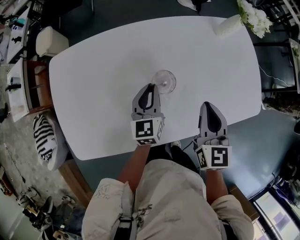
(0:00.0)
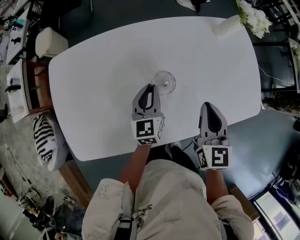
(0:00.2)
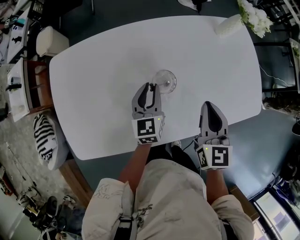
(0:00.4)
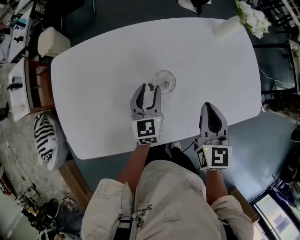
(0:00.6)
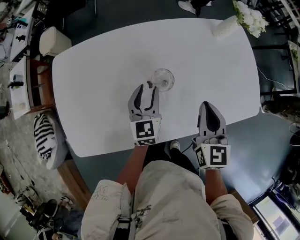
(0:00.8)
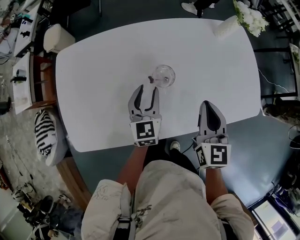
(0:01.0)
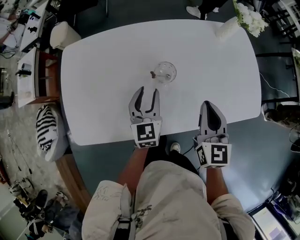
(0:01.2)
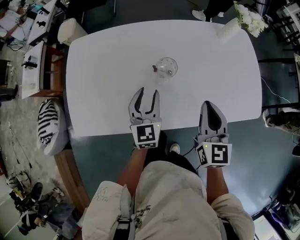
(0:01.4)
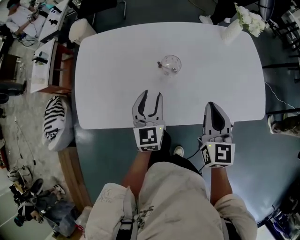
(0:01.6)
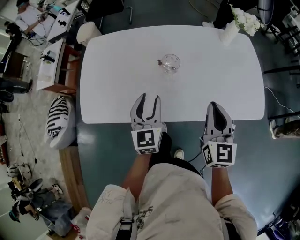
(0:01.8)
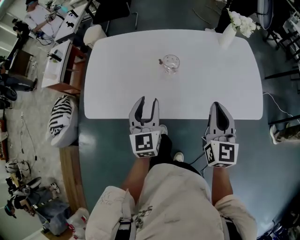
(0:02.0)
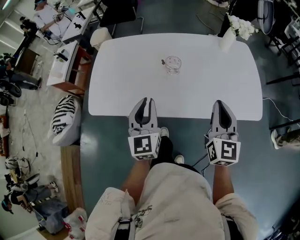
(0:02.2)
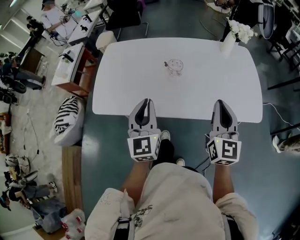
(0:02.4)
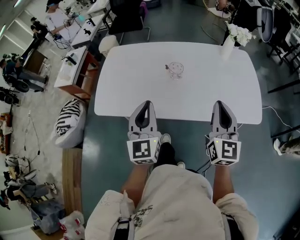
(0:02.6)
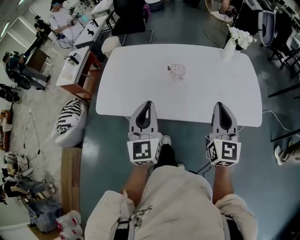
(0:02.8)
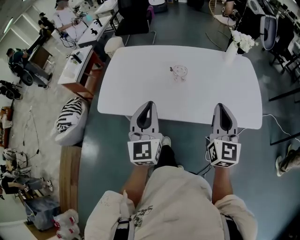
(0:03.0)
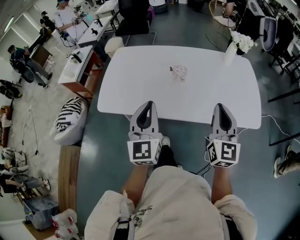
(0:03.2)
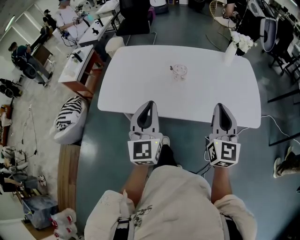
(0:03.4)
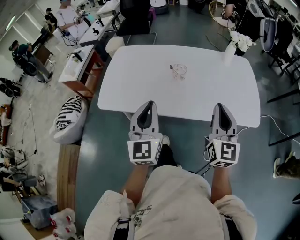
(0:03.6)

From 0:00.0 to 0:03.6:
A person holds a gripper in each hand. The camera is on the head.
From 0:00.0 to 0:01.8: The right gripper is displaced backward, to the right and upward by approximately 15 cm, while the left gripper is displaced backward and upward by about 25 cm, turns by some 20 degrees, and opens its fingers.
From 0:01.8 to 0:03.6: The right gripper heads backward and upward, covering approximately 15 cm. Meanwhile the left gripper heads backward and upward, covering roughly 25 cm, and closes up.

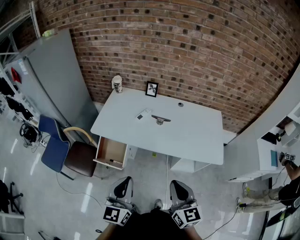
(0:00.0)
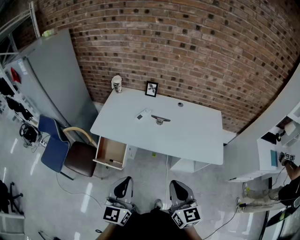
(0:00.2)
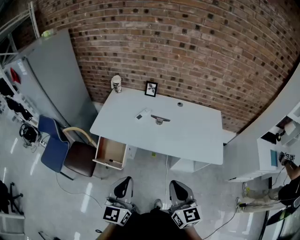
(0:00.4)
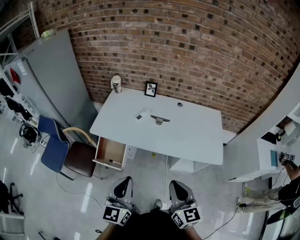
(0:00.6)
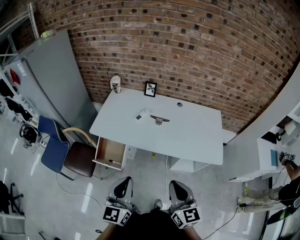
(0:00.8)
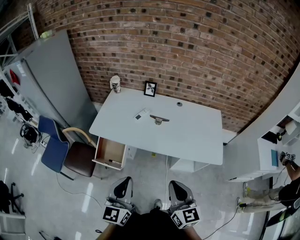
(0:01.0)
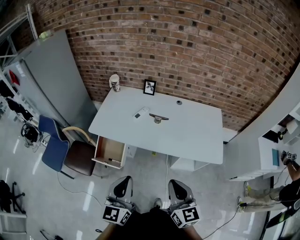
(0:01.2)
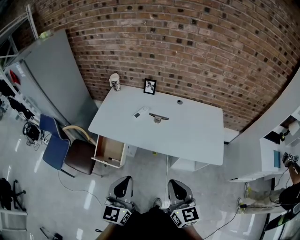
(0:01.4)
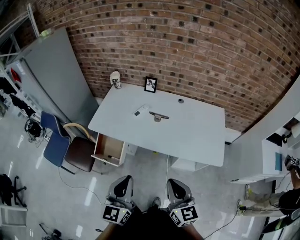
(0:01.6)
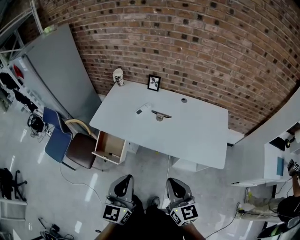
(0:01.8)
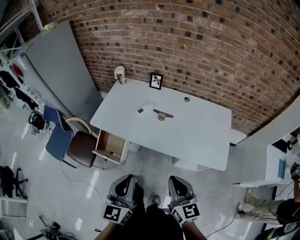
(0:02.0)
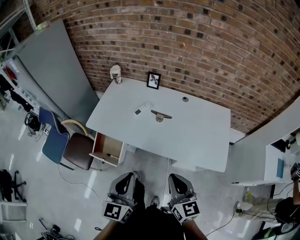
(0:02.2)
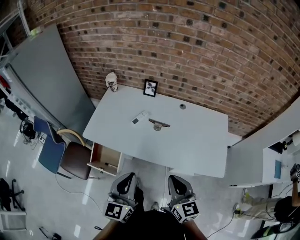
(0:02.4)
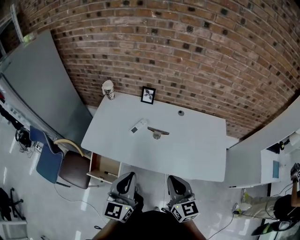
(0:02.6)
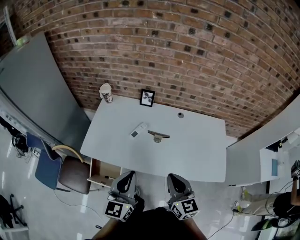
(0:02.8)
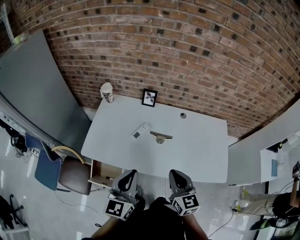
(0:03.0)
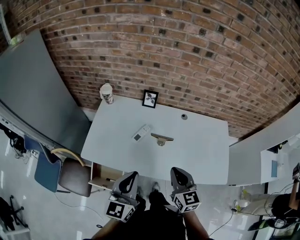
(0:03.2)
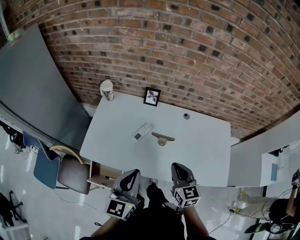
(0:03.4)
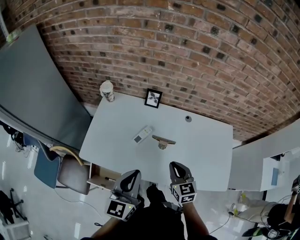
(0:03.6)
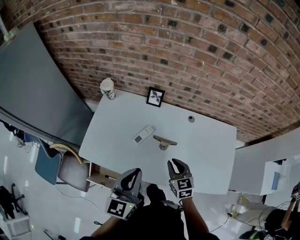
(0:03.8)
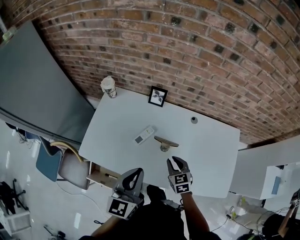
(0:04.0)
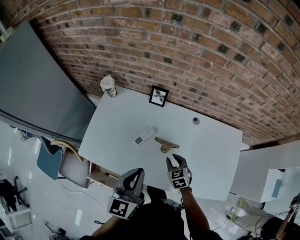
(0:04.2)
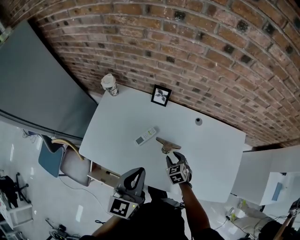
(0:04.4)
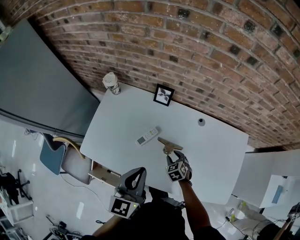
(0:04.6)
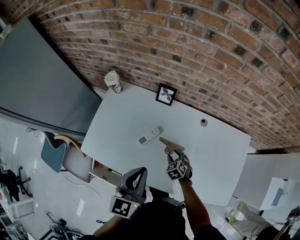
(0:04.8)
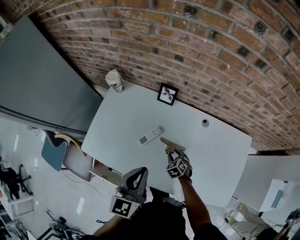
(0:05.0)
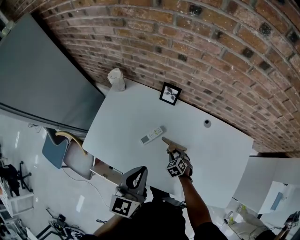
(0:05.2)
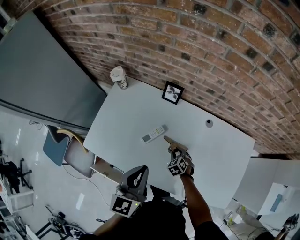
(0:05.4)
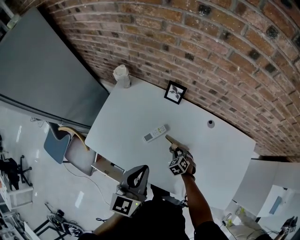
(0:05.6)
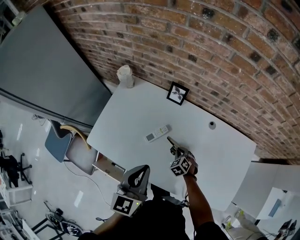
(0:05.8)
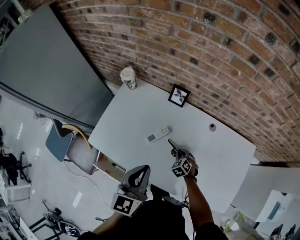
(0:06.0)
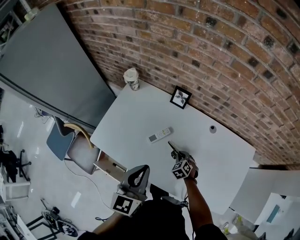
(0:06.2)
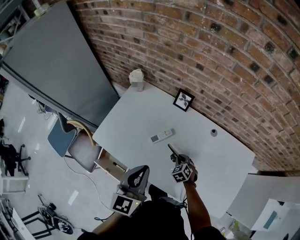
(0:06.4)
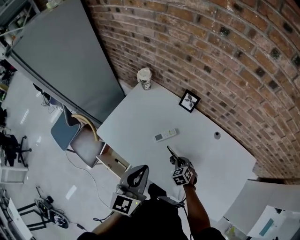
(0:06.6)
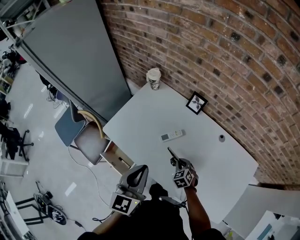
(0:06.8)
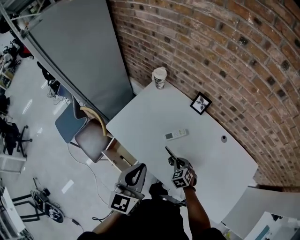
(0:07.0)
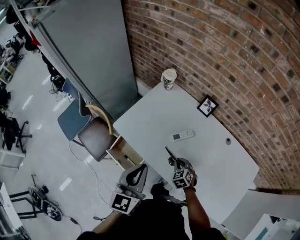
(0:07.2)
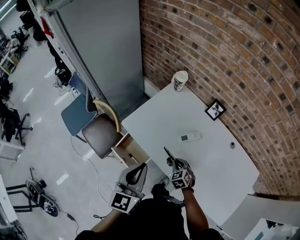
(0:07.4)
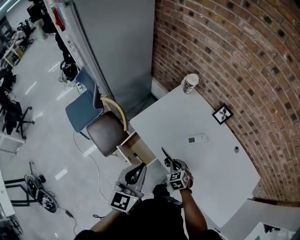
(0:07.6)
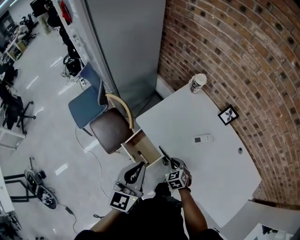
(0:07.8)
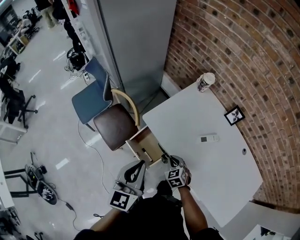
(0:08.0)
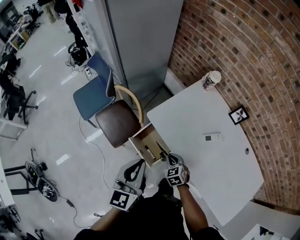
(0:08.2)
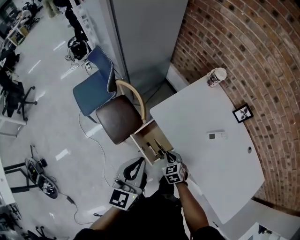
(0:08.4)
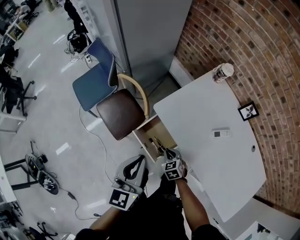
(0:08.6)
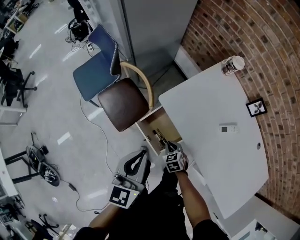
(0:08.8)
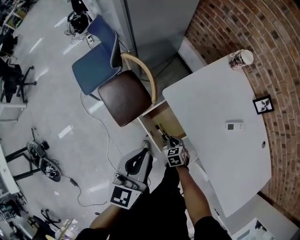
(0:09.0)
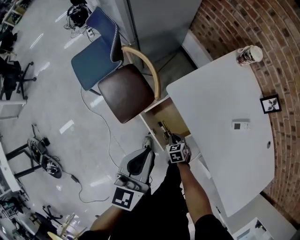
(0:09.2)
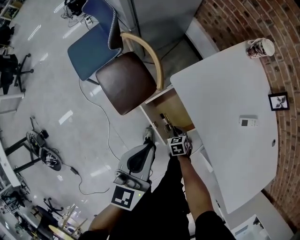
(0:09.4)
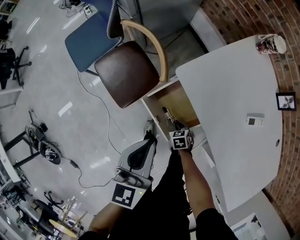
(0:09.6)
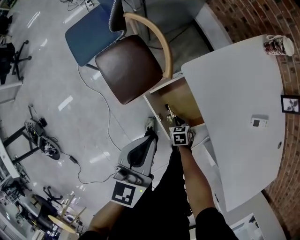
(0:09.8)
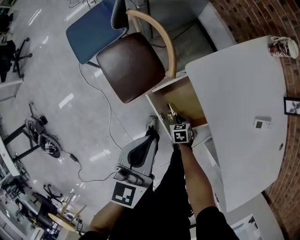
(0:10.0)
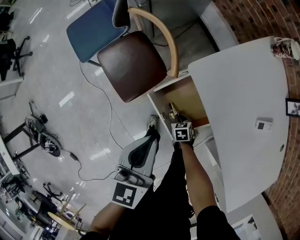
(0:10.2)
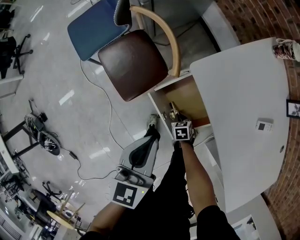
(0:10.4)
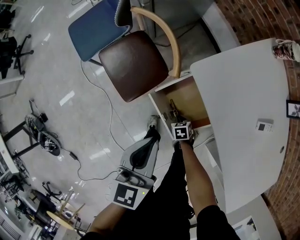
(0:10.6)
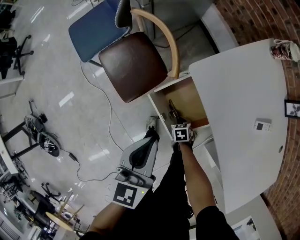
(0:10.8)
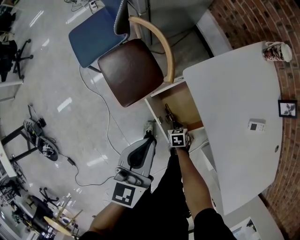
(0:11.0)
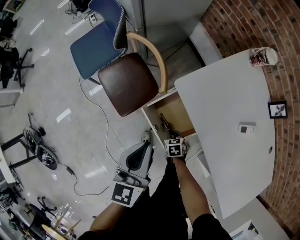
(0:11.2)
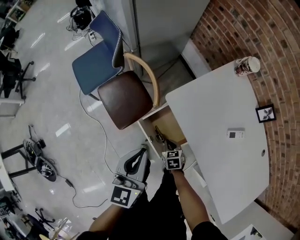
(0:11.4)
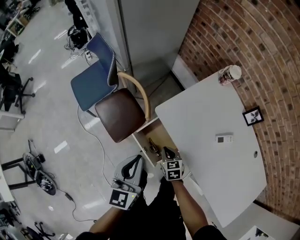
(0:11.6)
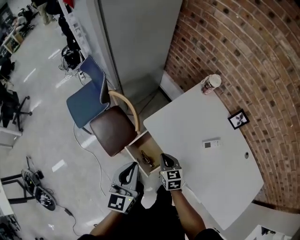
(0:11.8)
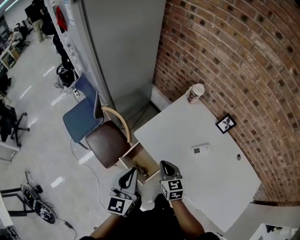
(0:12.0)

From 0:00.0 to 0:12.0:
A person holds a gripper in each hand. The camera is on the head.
From 0:00.0 to 0:01.6: Both grippers move to the right, approximately 5 cm.
From 0:01.6 to 0:03.0: The grippers both shift forward by roughly 25 cm.
From 0:03.0 to 0:04.4: The right gripper travels downward and forward by some 35 cm, points its fingers approximately 40 degrees further downward, and opens up. Meanwhile the left gripper heads forward, covering some 15 cm.
From 0:04.4 to 0:06.0: The right gripper travels downward by about 5 cm, and closes its fingers.
From 0:06.0 to 0:07.6: The left gripper goes some 30 cm to the left and backward, and swivels roughly 20 degrees, while the right gripper heads to the left, covering about 25 cm.
From 0:07.6 to 0:09.0: Both grippers travel together to the left and downward, roughly 25 cm.
From 0:09.0 to 0:10.4: Both grippers travel together downward, some 15 cm.
From 0:10.4 to 0:12.0: The right gripper heads upward, covering some 50 cm, and angles its fingers upward, by some 40 degrees; the left gripper heads upward, covering approximately 20 cm, and rotates some 20 degrees.

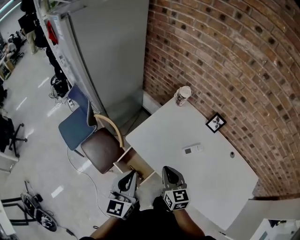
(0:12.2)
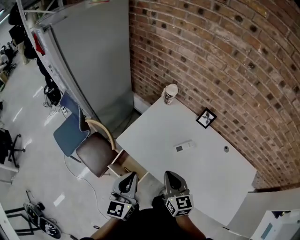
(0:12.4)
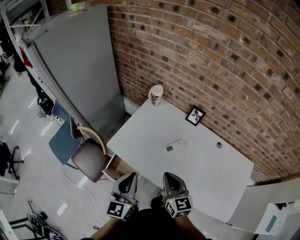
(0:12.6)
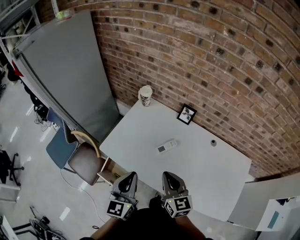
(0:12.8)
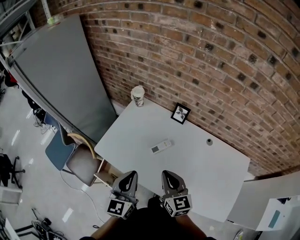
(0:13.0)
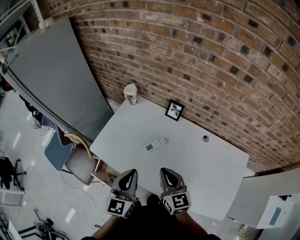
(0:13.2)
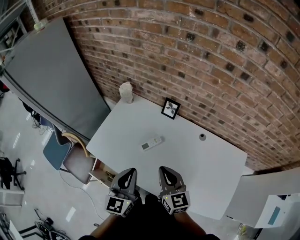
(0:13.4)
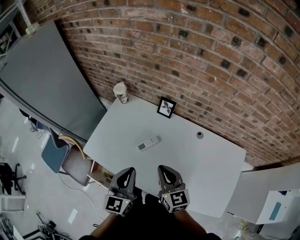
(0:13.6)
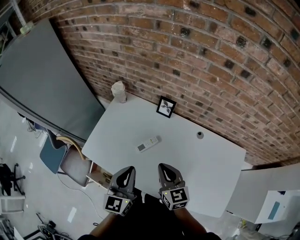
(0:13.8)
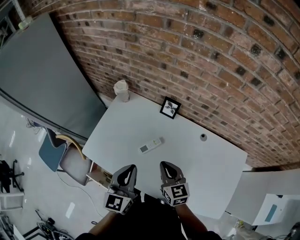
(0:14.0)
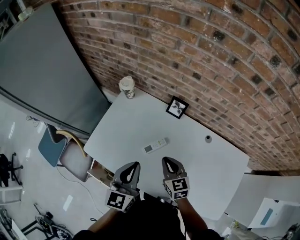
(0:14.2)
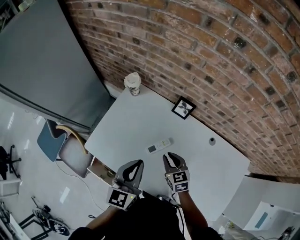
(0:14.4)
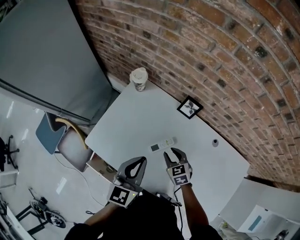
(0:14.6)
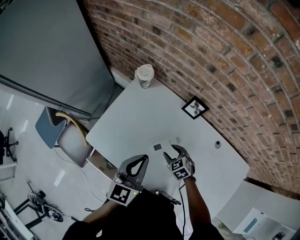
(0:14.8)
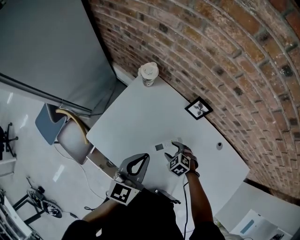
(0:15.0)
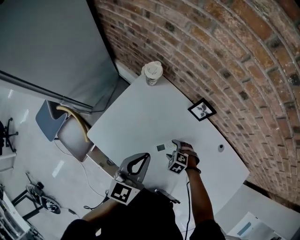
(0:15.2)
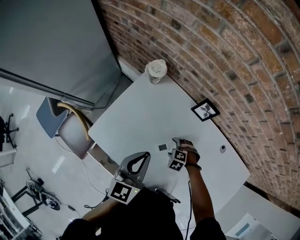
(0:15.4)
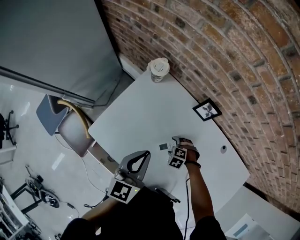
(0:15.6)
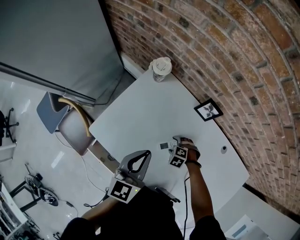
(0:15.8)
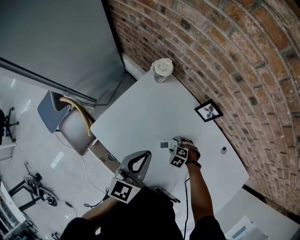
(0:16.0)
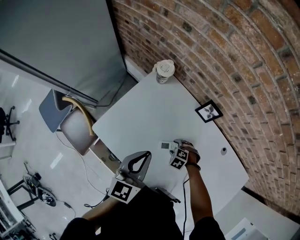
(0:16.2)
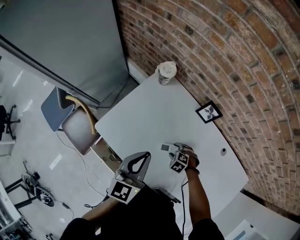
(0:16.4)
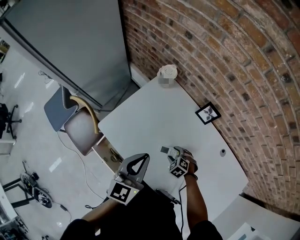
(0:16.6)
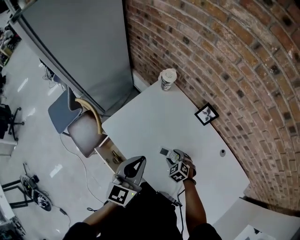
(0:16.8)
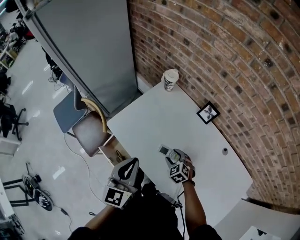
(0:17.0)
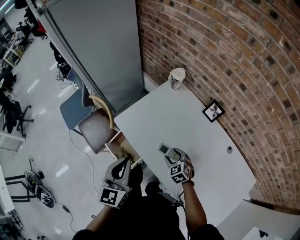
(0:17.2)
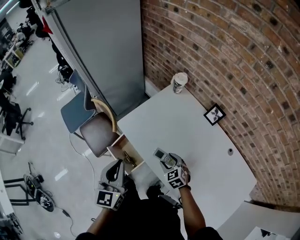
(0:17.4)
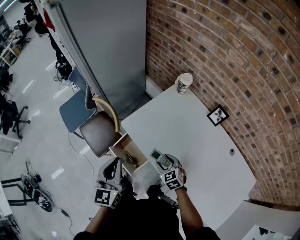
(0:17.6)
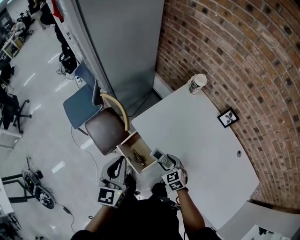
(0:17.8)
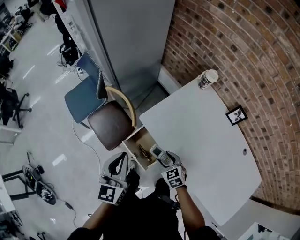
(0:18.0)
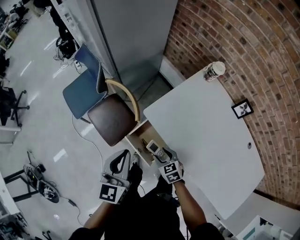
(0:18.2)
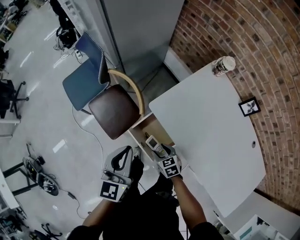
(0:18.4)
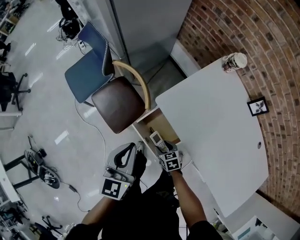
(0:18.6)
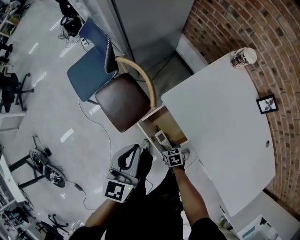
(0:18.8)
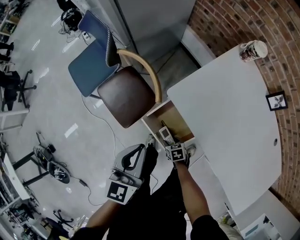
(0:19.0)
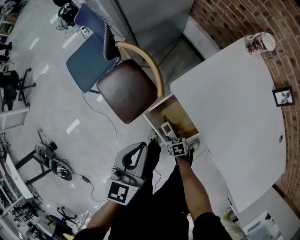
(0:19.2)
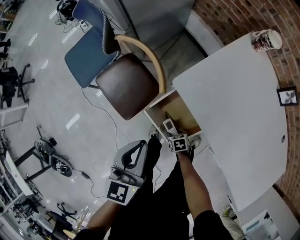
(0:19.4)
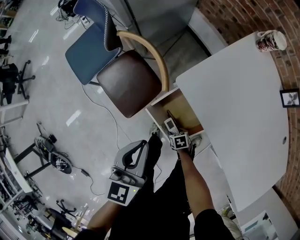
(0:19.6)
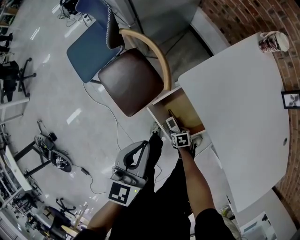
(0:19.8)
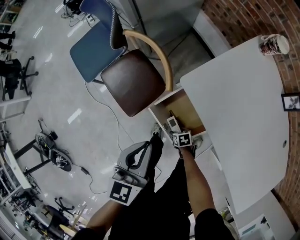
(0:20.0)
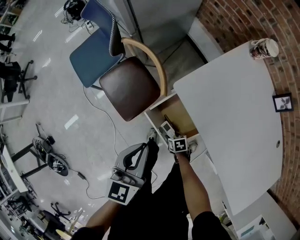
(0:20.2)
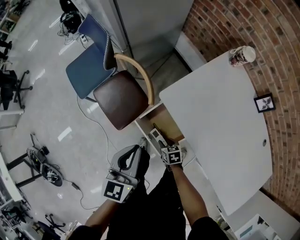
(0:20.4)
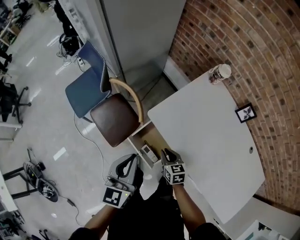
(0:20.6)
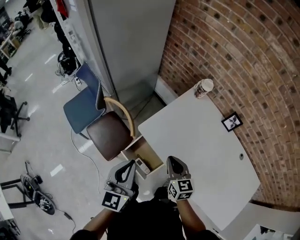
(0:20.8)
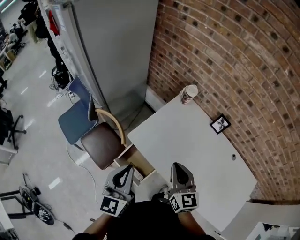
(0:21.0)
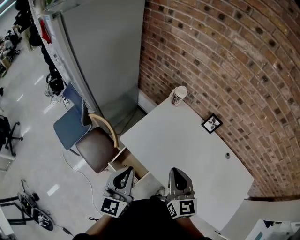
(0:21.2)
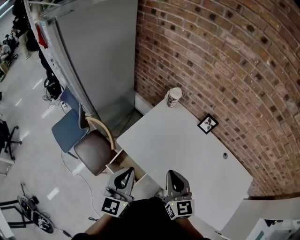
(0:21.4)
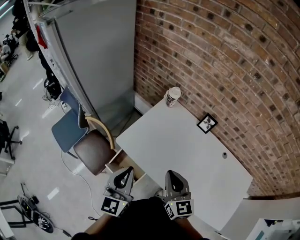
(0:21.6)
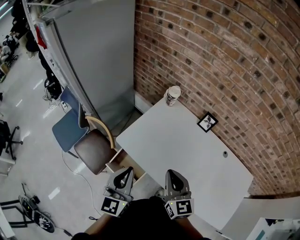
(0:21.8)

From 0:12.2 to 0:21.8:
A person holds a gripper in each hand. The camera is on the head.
From 0:12.2 to 0:13.8: The grippers both shift to the right by some 30 cm.
From 0:13.8 to 0:15.4: The left gripper moves about 20 cm, while the right gripper is displaced downward by approximately 30 cm, tilts its fingers some 60 degrees downward, and opens.
From 0:15.4 to 0:17.0: The right gripper moves upward, about 10 cm, and rotates some 30 degrees. Meanwhile the left gripper shifts by some 20 cm.
From 0:17.0 to 0:18.6: The right gripper moves to the left and downward, about 40 cm, and rotates some 30 degrees; the left gripper shifts about 30 cm to the left.
From 0:18.6 to 0:20.2: The right gripper moves downward, approximately 15 cm, and rotates approximately 20 degrees, while the left gripper goes roughly 5 cm downward.
From 0:20.2 to 0:21.8: The right gripper travels upward by about 60 cm, tilts its fingers roughly 60 degrees upward, and closes its fingers, while the left gripper goes some 20 cm upward, and rotates approximately 20 degrees.
